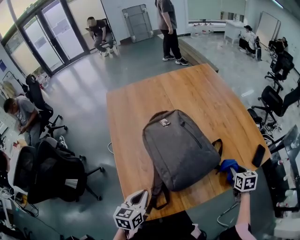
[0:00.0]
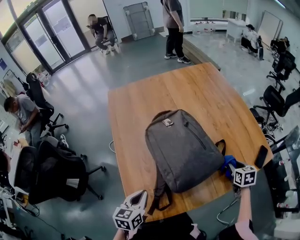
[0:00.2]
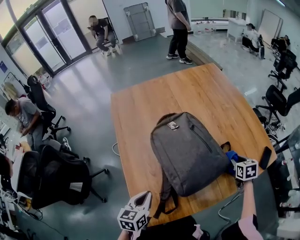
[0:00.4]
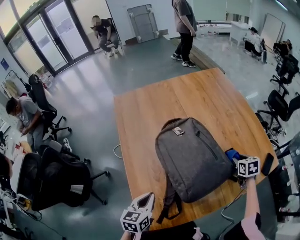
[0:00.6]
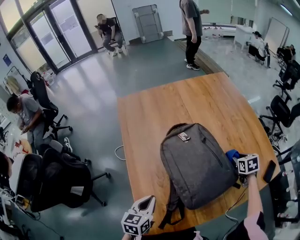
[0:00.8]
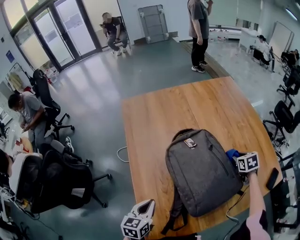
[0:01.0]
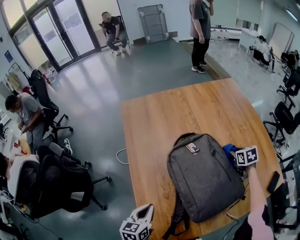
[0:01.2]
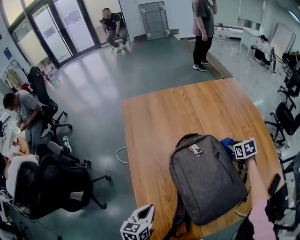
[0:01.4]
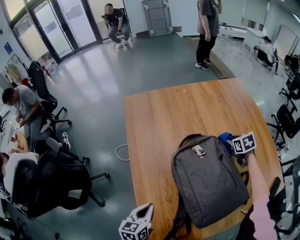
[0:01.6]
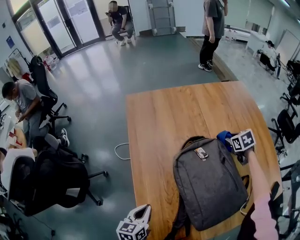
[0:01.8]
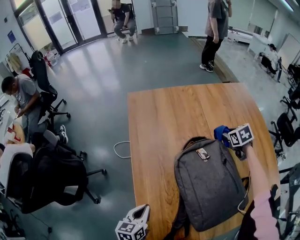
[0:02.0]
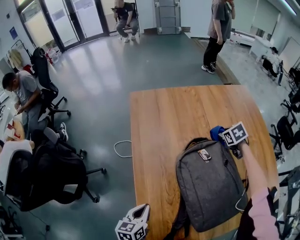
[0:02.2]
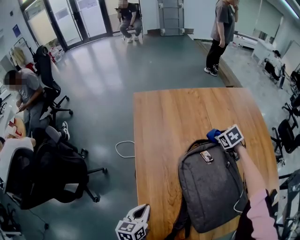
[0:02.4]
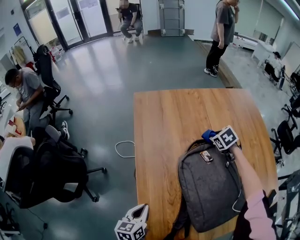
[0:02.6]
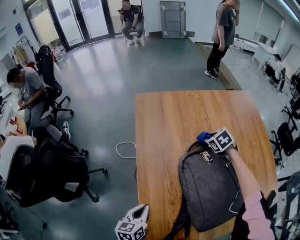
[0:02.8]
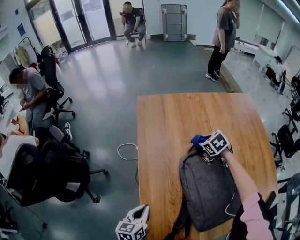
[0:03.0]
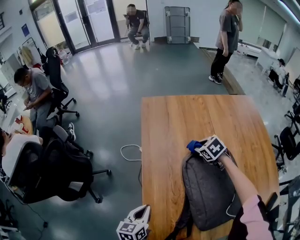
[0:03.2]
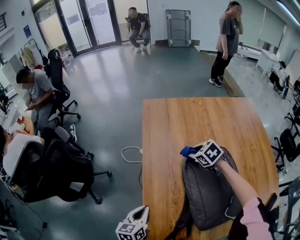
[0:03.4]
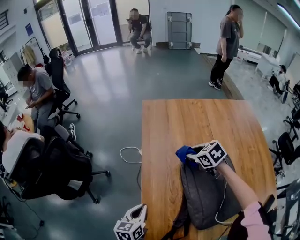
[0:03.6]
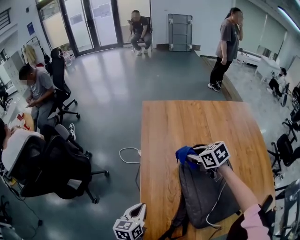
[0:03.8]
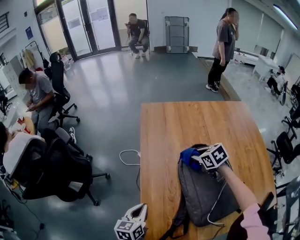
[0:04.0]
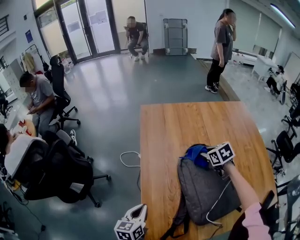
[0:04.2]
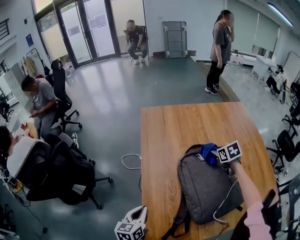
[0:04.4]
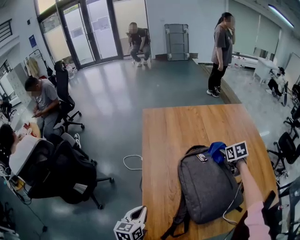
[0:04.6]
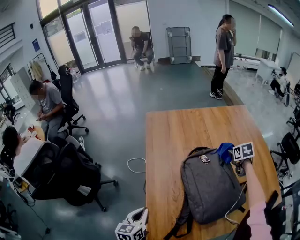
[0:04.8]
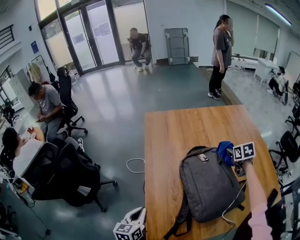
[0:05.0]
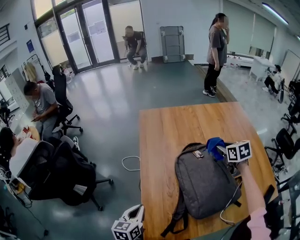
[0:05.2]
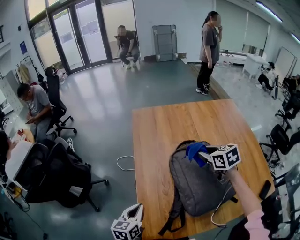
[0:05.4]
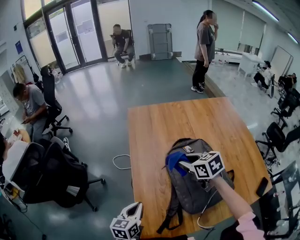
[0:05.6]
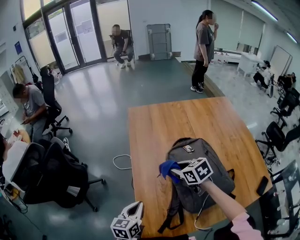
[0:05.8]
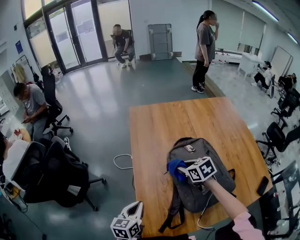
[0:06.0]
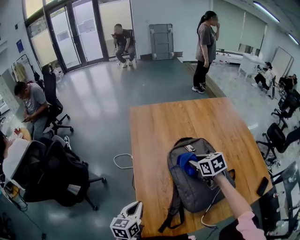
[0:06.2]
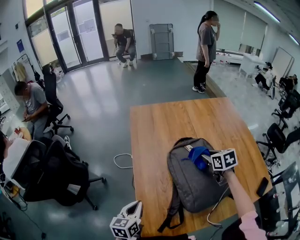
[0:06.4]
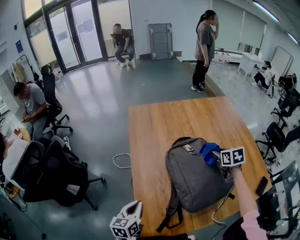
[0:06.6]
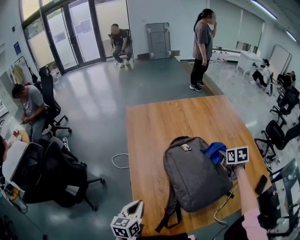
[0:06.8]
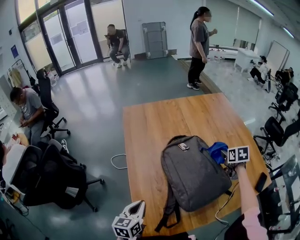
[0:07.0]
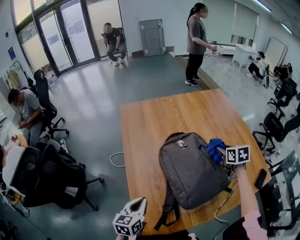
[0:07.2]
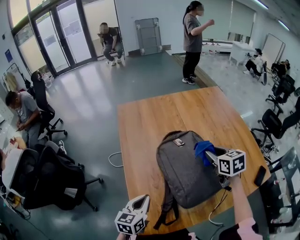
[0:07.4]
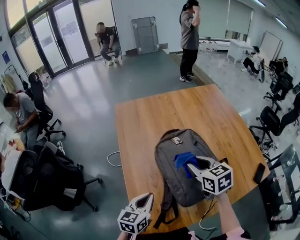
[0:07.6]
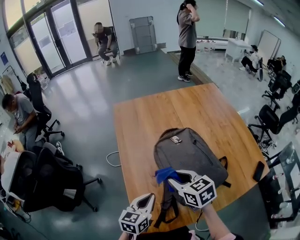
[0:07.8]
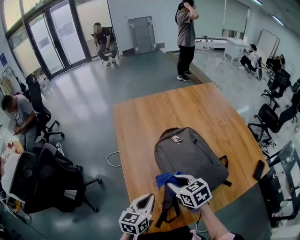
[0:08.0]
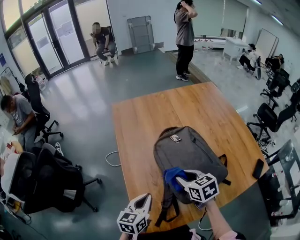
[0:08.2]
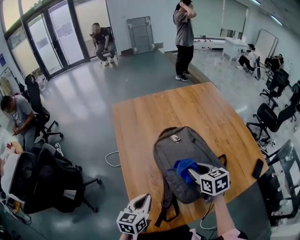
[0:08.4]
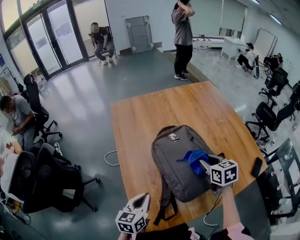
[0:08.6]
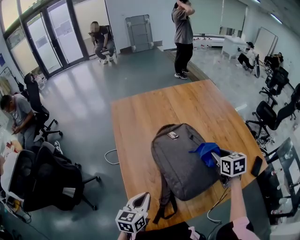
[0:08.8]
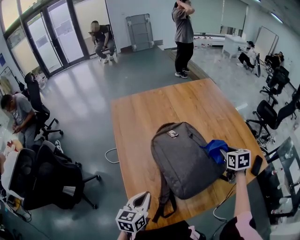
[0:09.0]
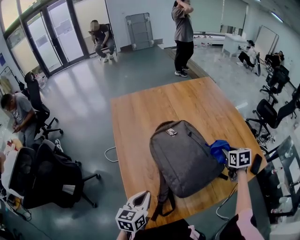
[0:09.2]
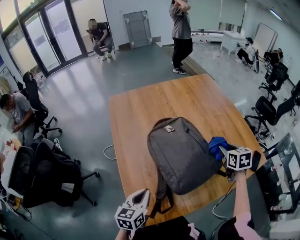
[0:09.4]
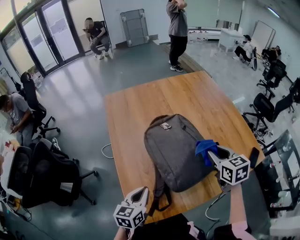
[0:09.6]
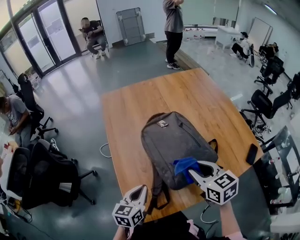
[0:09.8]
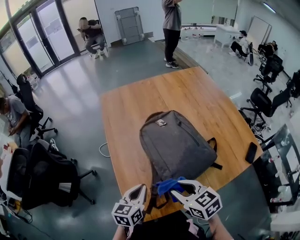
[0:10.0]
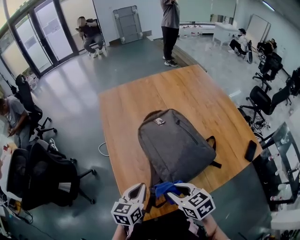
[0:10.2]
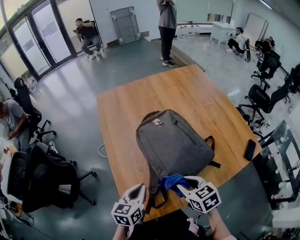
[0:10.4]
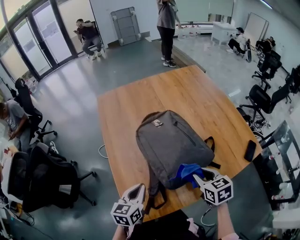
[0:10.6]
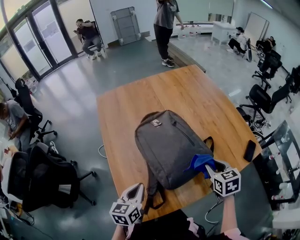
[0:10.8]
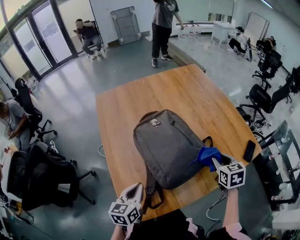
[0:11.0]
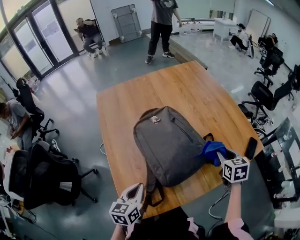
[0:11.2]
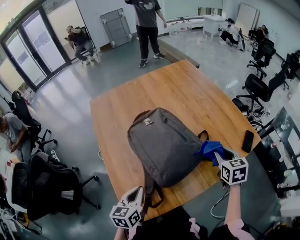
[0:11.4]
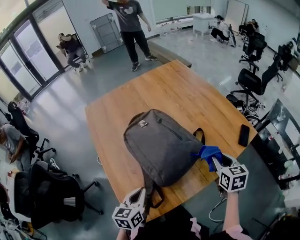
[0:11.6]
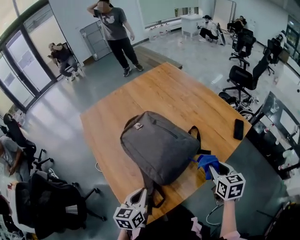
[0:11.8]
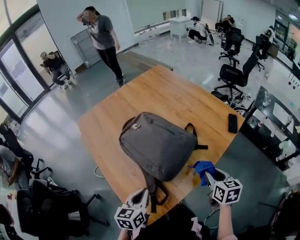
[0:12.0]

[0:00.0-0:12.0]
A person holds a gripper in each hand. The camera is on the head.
0:00.0 to 0:01.6: The left gripper heads to the left and forward, covering roughly 15 cm. Meanwhile the right gripper travels forward and to the left by roughly 40 cm, and rotates roughly 20 degrees.
0:01.6 to 0:03.0: The right gripper travels to the left by roughly 25 cm, and turns by about 30 degrees; the left gripper moves about 5 cm.
0:03.0 to 0:04.4: The left gripper shifts by some 5 cm. The right gripper shifts about 15 cm backward, to the right and upward, and rotates some 20 degrees.
0:04.4 to 0:06.0: The right gripper heads to the left and backward, covering about 20 cm.
0:06.0 to 0:07.6: The left gripper travels to the right by some 10 cm. The right gripper is displaced upward by roughly 10 cm, reaches approximately 30 cm to the right, then returns, and changes its angle by some 20 degrees.
0:07.6 to 0:09.0: The right gripper travels to the right by about 25 cm, and turns by roughly 30 degrees.
0:09.0 to 0:10.4: The right gripper goes roughly 25 cm backward and to the left, and rotates about 30 degrees.
0:10.4 to 0:12.0: The right gripper moves some 20 cm, and swivels some 50 degrees.

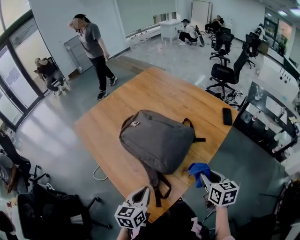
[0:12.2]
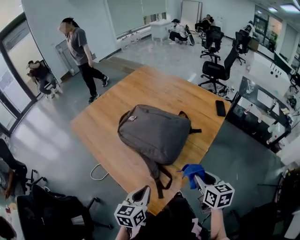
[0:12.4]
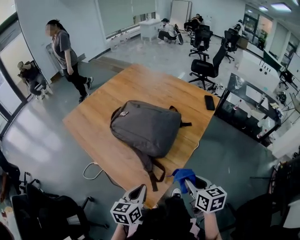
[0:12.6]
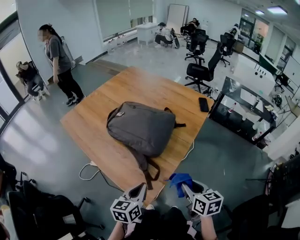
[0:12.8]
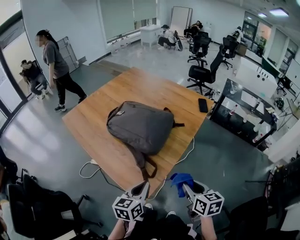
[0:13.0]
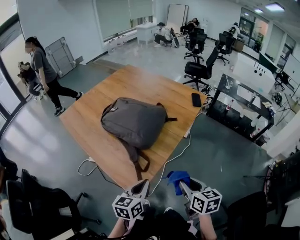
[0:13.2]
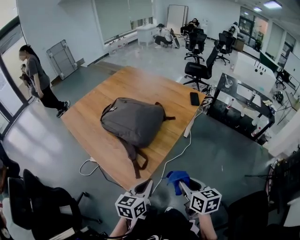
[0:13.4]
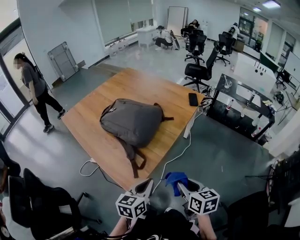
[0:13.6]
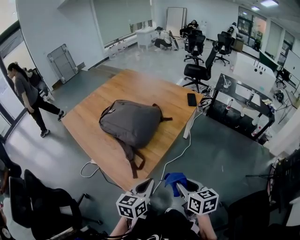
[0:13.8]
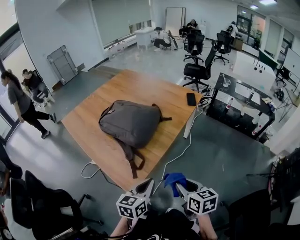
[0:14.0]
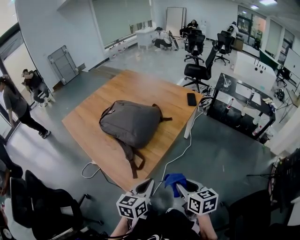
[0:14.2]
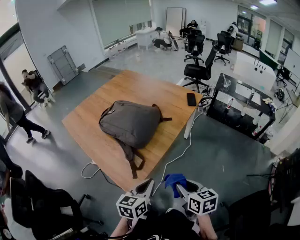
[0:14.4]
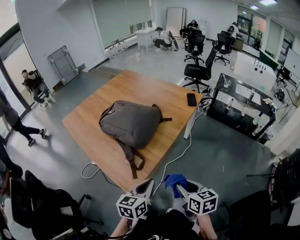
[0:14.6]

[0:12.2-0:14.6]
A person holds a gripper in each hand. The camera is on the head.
0:12.2 to 0:13.4: The right gripper is displaced backward by about 25 cm; the left gripper heads backward and to the right, covering some 20 cm.
0:13.4 to 0:14.6: There are only small adjustments of the grippers.

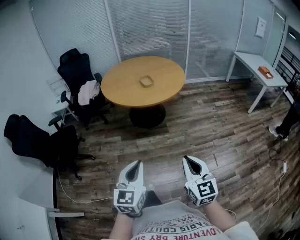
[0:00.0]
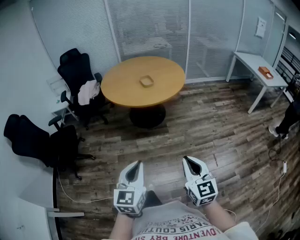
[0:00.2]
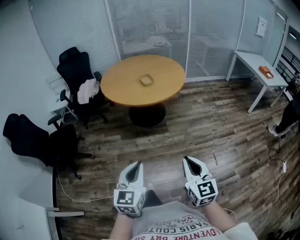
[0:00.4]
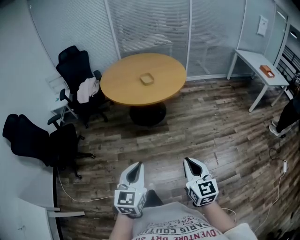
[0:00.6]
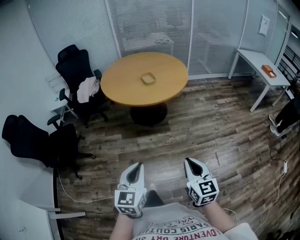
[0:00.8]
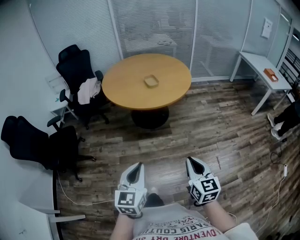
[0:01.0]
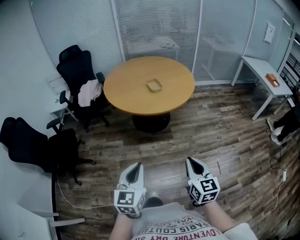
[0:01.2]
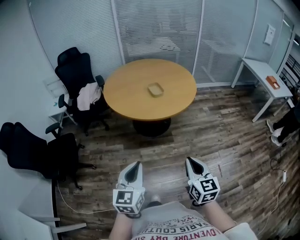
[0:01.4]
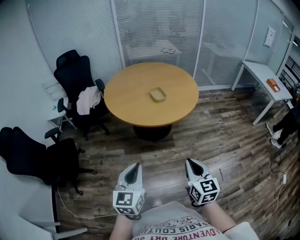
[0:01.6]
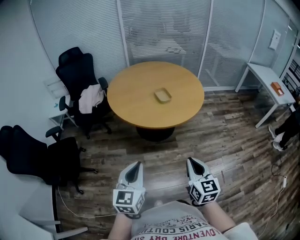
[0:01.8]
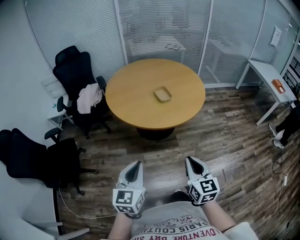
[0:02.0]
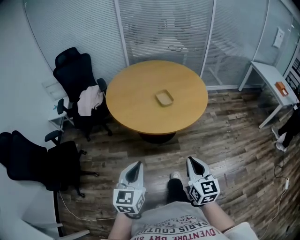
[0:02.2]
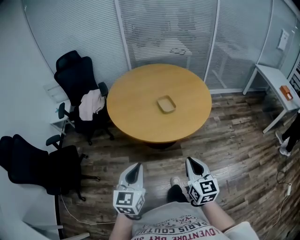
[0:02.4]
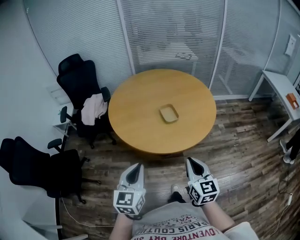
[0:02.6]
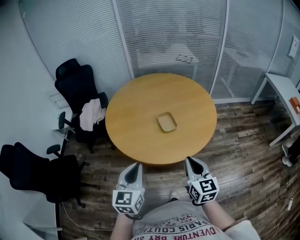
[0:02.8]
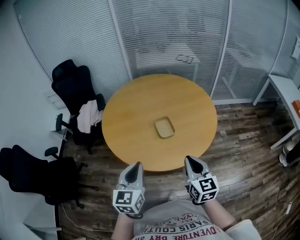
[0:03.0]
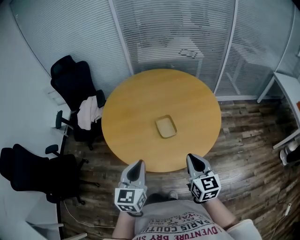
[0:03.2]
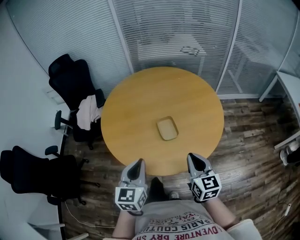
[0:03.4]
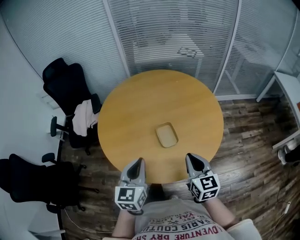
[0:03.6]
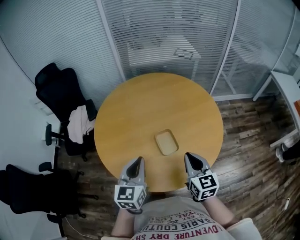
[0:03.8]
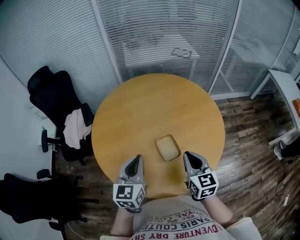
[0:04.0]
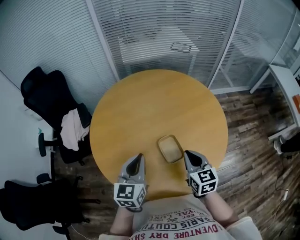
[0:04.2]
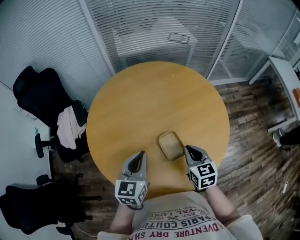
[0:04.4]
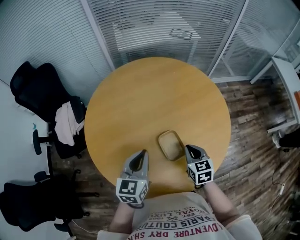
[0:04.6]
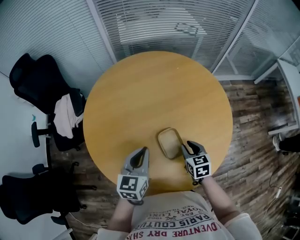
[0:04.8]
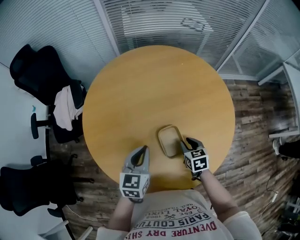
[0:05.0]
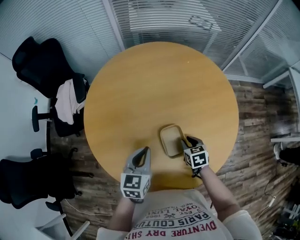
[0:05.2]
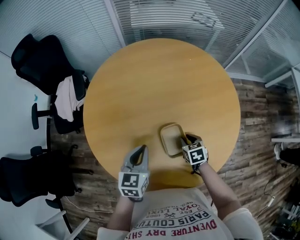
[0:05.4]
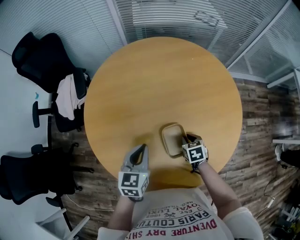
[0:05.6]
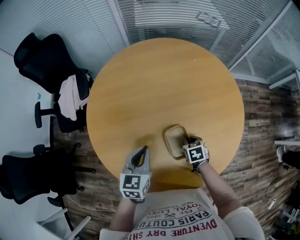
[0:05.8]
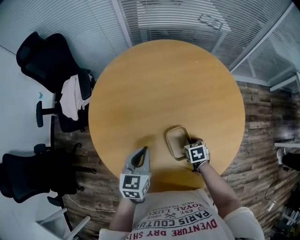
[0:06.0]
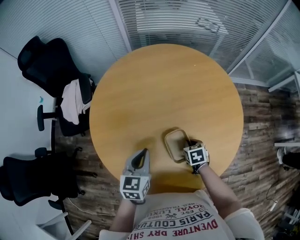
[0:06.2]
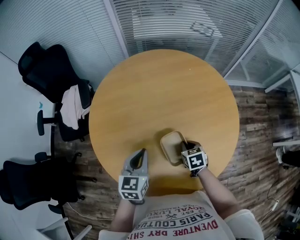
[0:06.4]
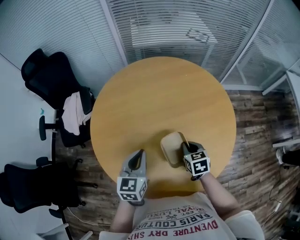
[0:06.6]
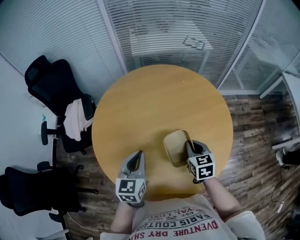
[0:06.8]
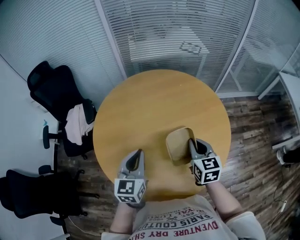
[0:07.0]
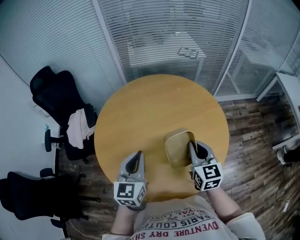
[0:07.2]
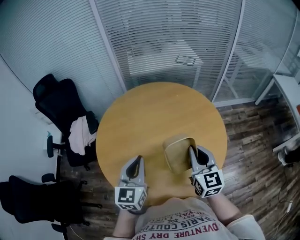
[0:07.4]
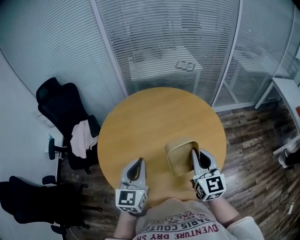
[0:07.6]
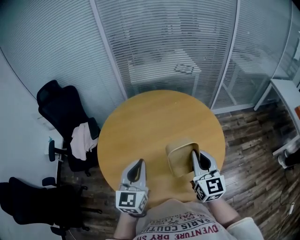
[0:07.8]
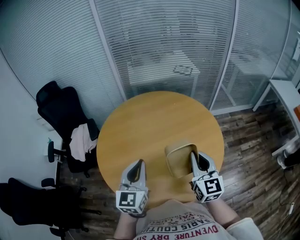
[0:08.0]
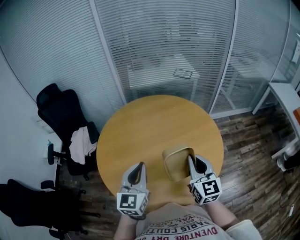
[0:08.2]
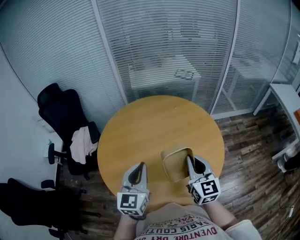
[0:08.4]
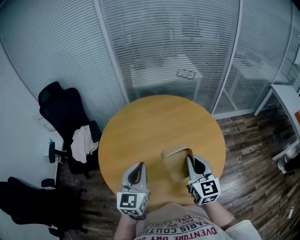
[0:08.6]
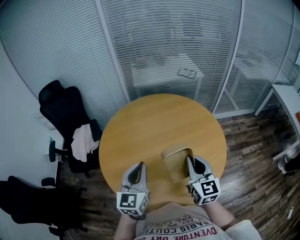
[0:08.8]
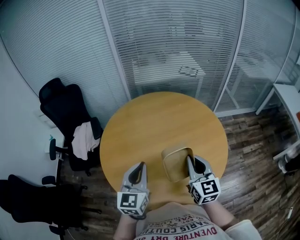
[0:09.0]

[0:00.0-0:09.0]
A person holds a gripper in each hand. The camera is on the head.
0:00.0 to 0:01.6: The two grippers go about 25 cm forward and to the left.
0:01.6 to 0:03.0: Both grippers travel together forward, approximately 40 cm.
0:03.0 to 0:04.4: The two grippers go some 30 cm forward.
0:04.4 to 0:06.0: The left gripper heads downward, covering roughly 10 cm; the right gripper moves downward, approximately 20 cm, angles its fingers downward, by about 30 degrees, and opens and closes again.
0:06.0 to 0:07.6: The left gripper is displaced upward and backward by about 20 cm, and changes its angle by roughly 30 degrees; the right gripper is displaced upward by about 40 cm, and points its fingers approximately 60 degrees further upward.
0:07.6 to 0:09.0: The grippers stay close to where they were, moving slightly.
